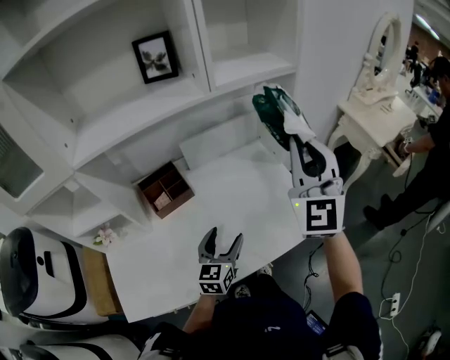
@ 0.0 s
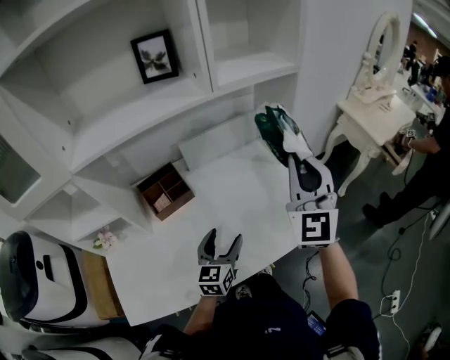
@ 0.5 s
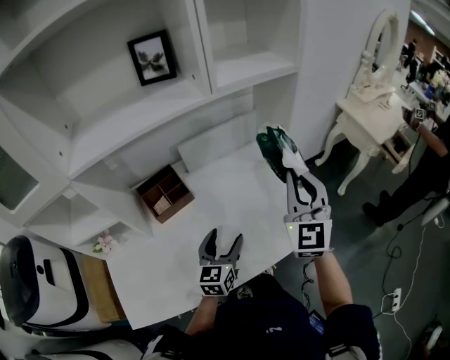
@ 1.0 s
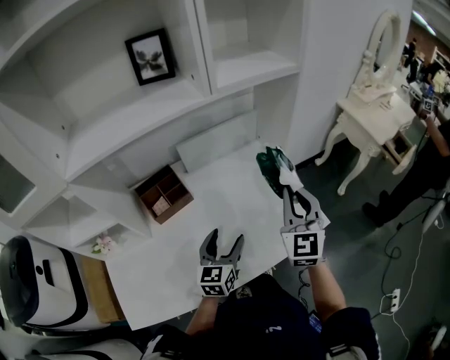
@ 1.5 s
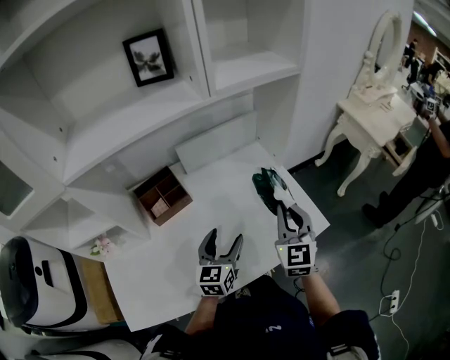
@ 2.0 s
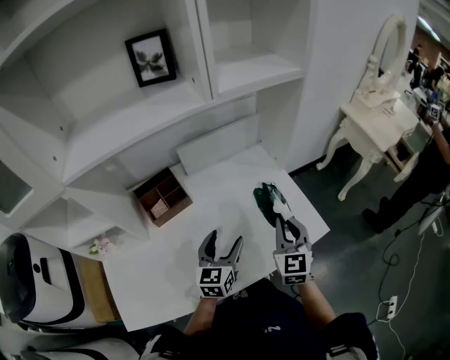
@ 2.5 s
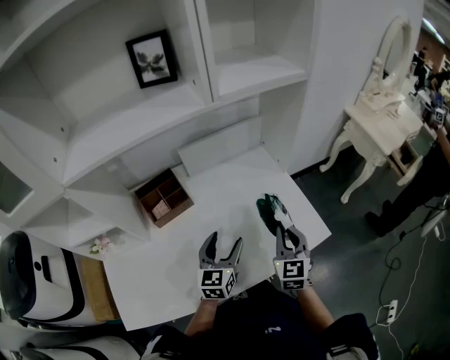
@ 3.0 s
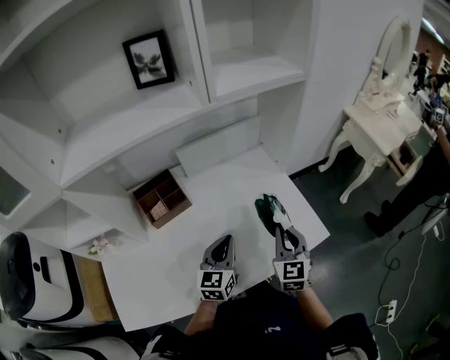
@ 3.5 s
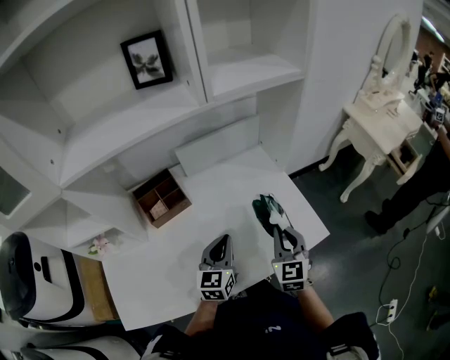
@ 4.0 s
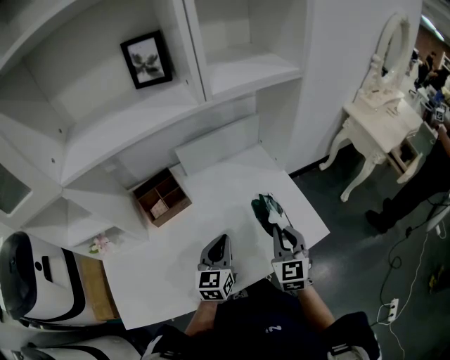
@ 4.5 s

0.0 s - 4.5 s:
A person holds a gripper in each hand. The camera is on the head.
0.0 s - 2.0 s: The right gripper shifts approximately 20 cm downward, and rotates some 30 degrees.
2.0 s - 4.5 s: The right gripper travels downward by some 5 cm; the left gripper closes up.

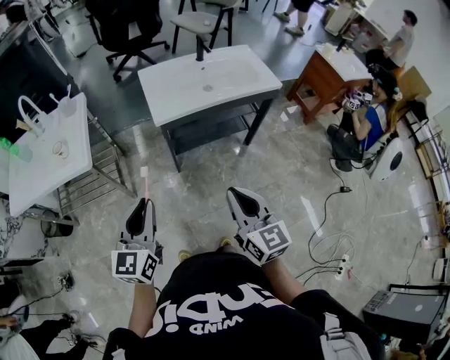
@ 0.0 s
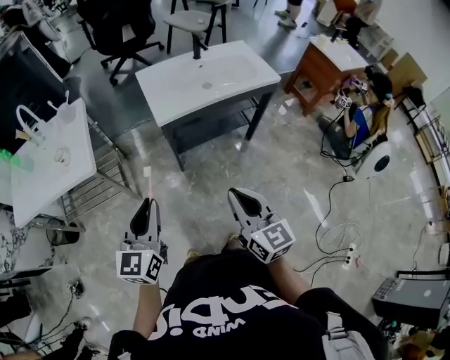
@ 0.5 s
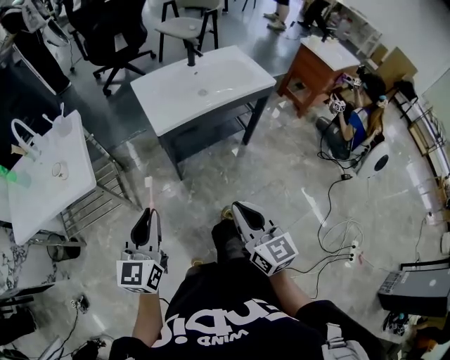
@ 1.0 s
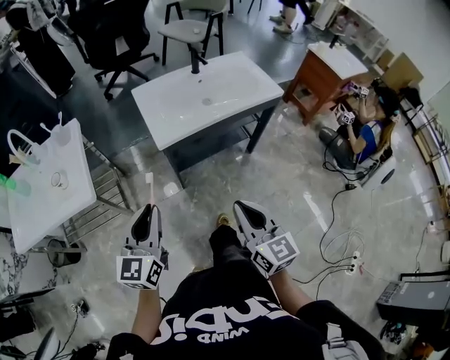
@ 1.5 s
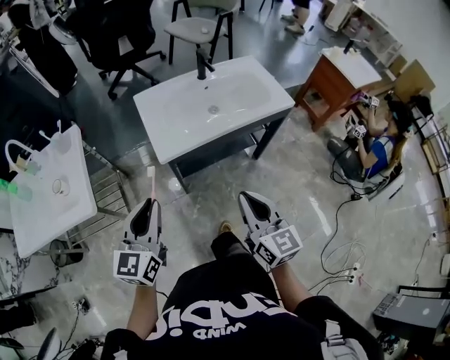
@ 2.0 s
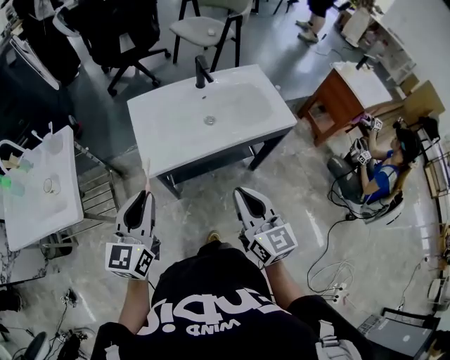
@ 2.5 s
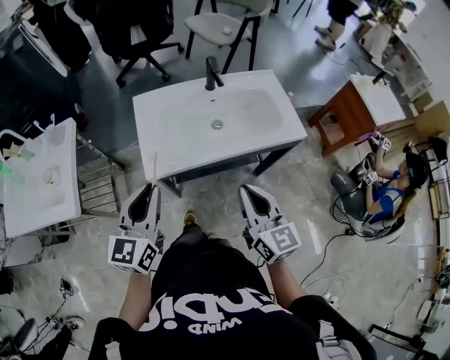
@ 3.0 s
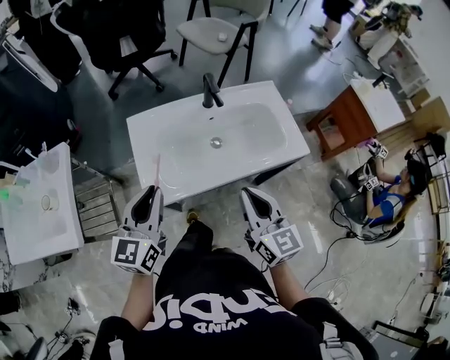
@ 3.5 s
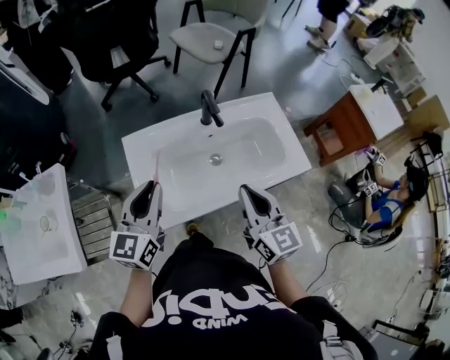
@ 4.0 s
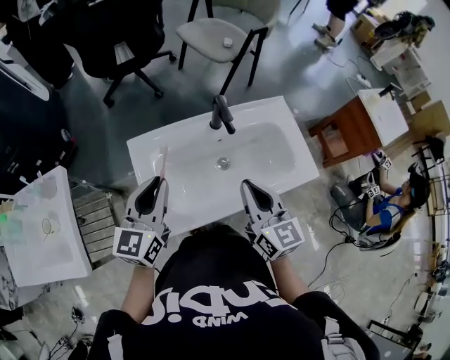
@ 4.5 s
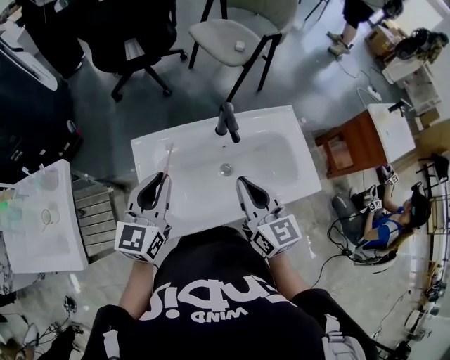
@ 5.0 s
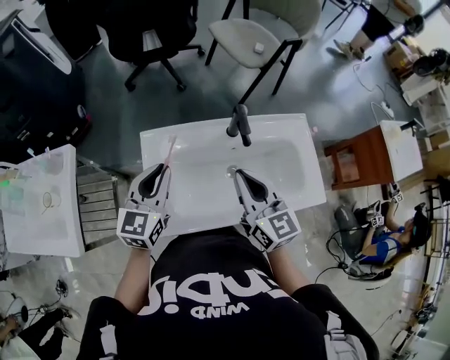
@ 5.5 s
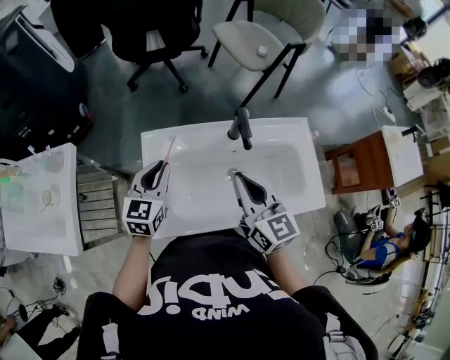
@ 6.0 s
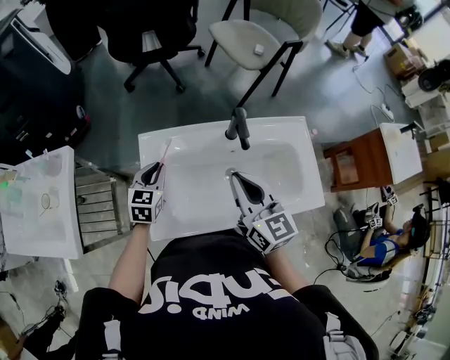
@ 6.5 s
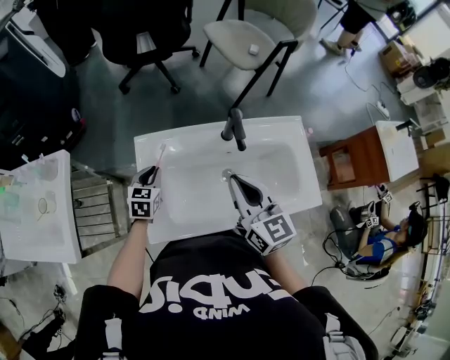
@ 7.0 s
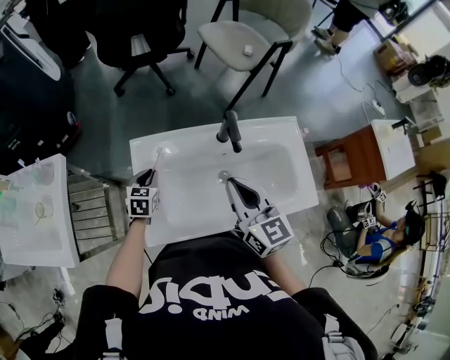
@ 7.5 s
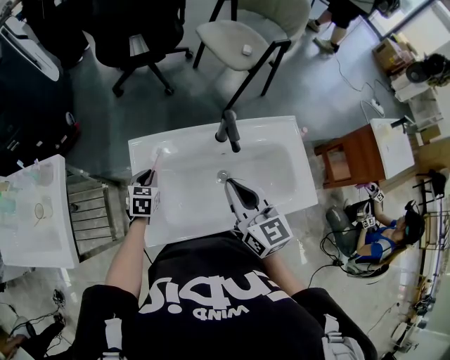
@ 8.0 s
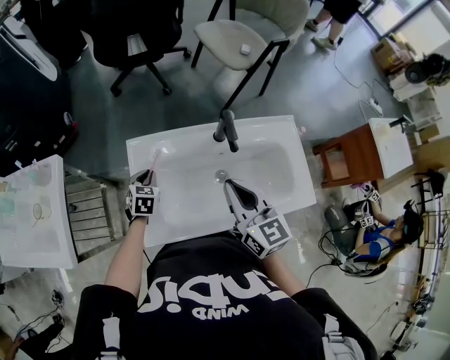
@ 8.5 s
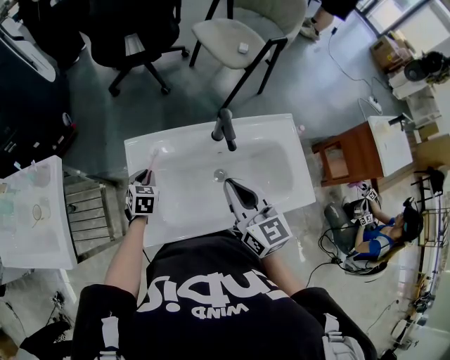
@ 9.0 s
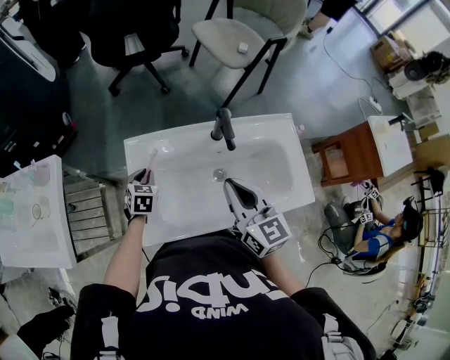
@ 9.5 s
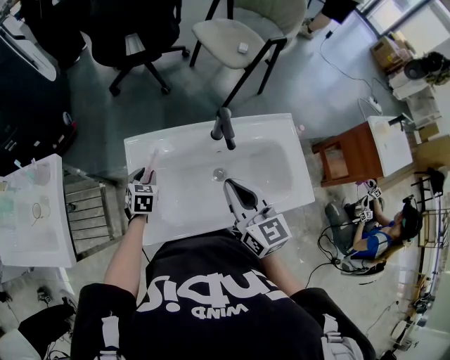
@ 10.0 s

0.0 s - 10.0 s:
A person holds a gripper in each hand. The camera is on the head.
0.0 s - 2.0 s: Both grippers move forward, some 15 cm.
2.0 s - 4.0 s: Both grippers move forward, roughly 35 cm.
4.0 s - 6.0 s: The right gripper heads forward, covering some 15 cm. Meanwhile the left gripper shifts roughly 15 cm forward and downward.
6.0 s - 8.0 s: The left gripper shifts about 15 cm downward, and turns by some 30 degrees.
8.0 s - 10.0 s: There are only small adjustments of the grippers.

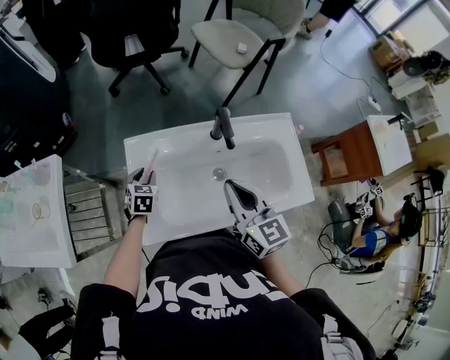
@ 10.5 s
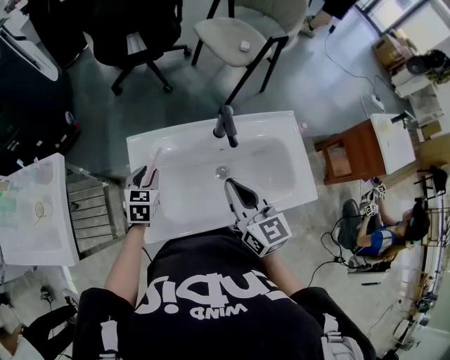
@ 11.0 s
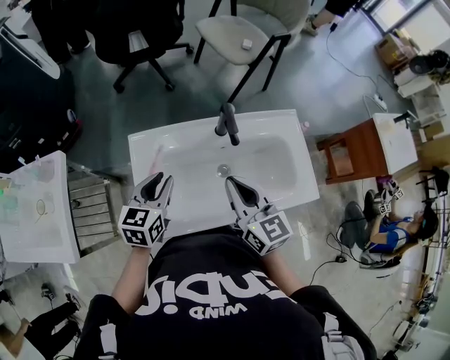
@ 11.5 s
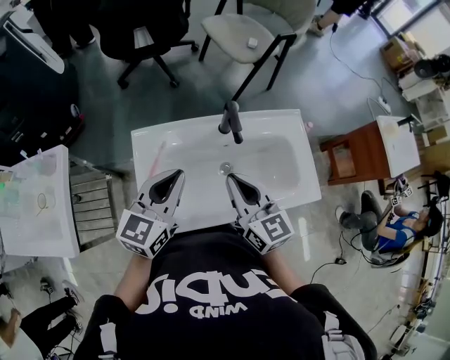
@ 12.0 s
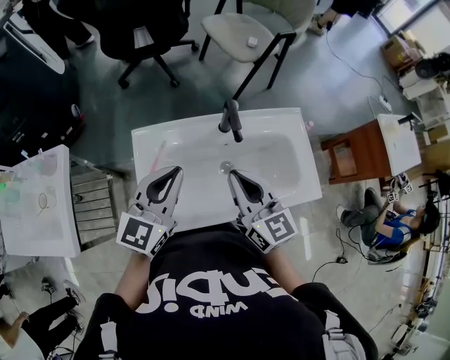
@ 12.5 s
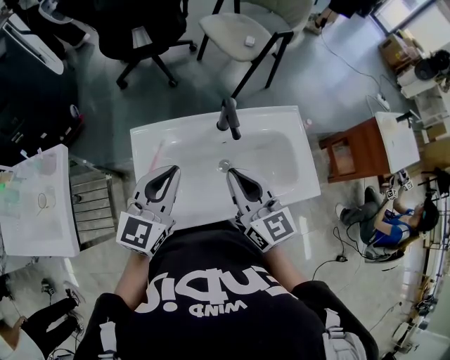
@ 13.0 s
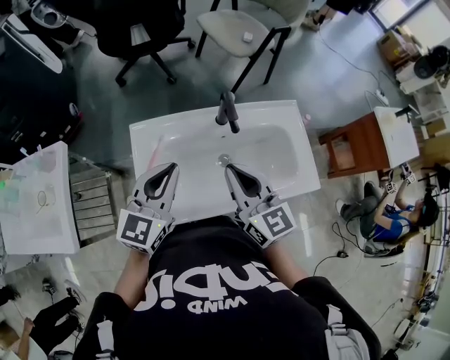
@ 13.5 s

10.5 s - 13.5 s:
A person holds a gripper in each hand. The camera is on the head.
10.5 s - 12.0 s: The left gripper shifts roughly 30 cm upward and to the right, tips its fingers upward by some 40 degrees, and closes up.
12.0 s - 13.5 s: The grippers move only a little.

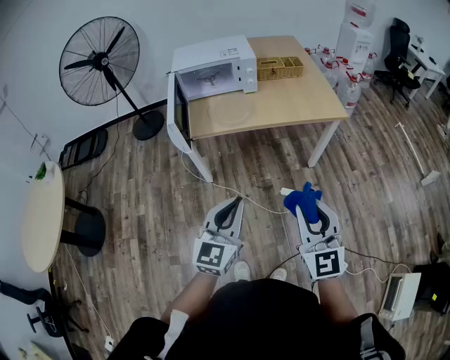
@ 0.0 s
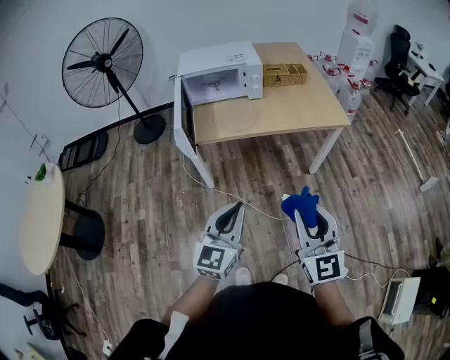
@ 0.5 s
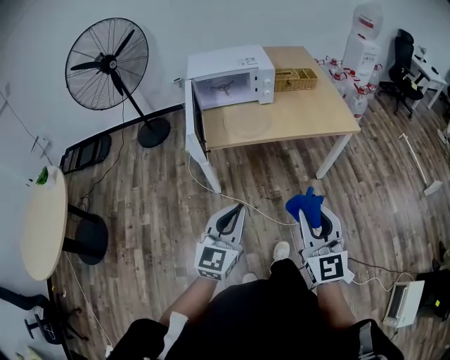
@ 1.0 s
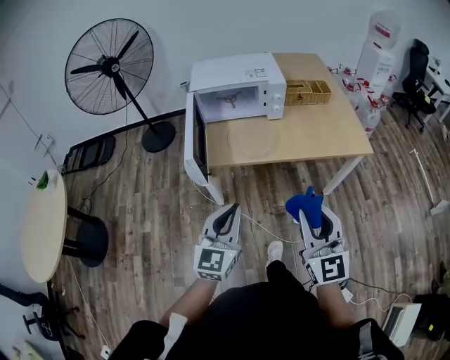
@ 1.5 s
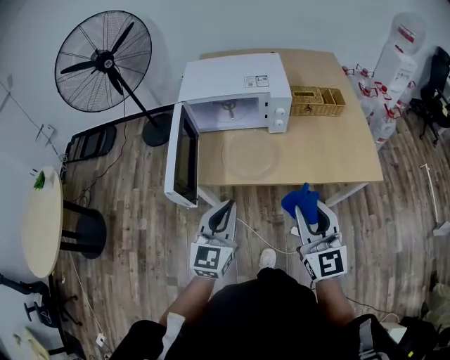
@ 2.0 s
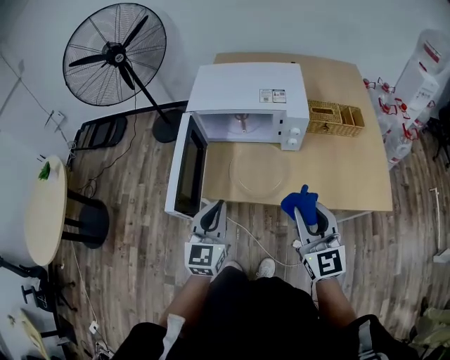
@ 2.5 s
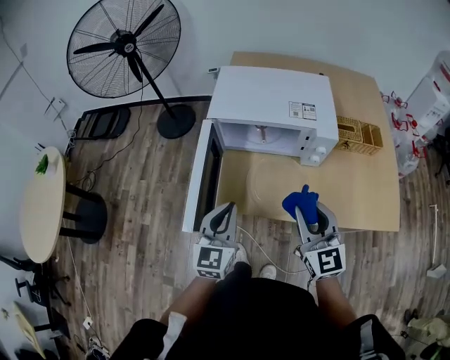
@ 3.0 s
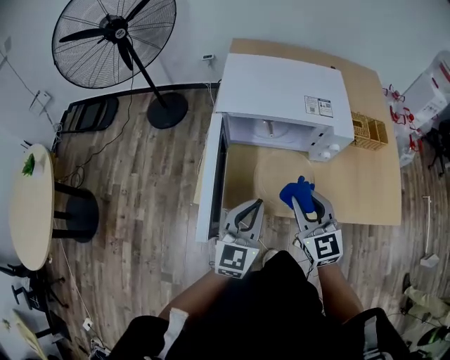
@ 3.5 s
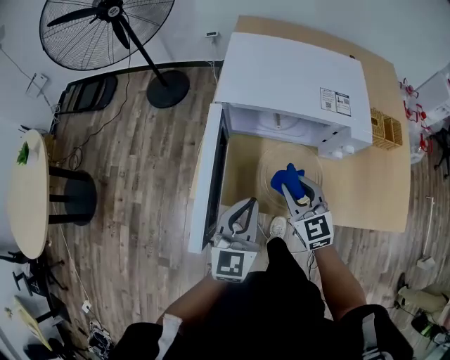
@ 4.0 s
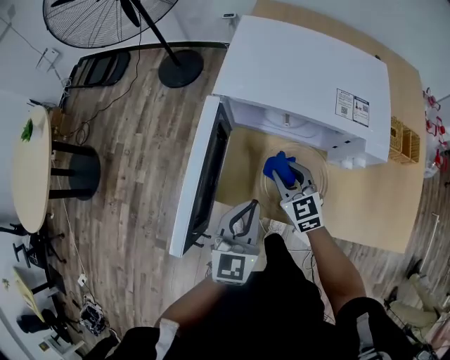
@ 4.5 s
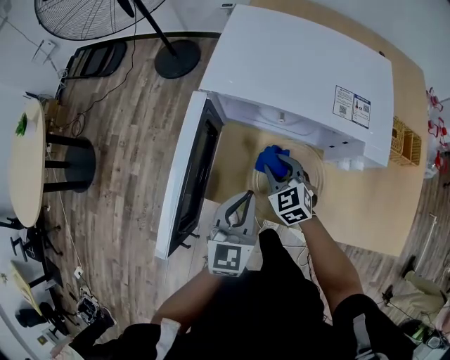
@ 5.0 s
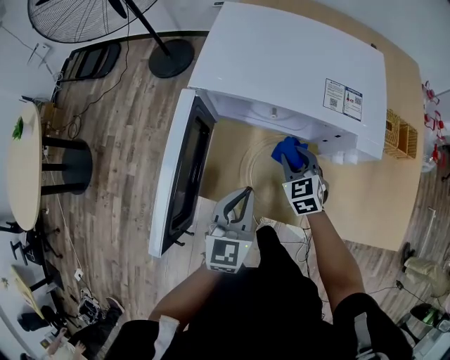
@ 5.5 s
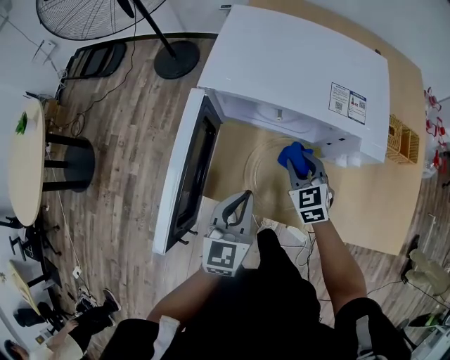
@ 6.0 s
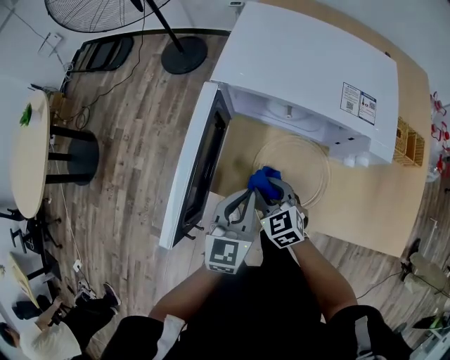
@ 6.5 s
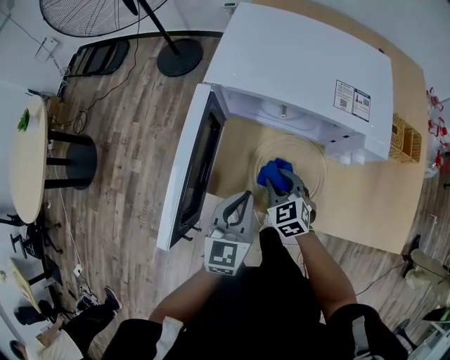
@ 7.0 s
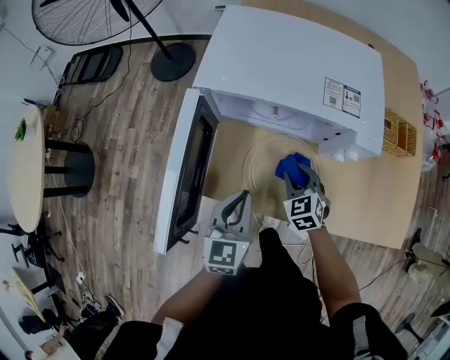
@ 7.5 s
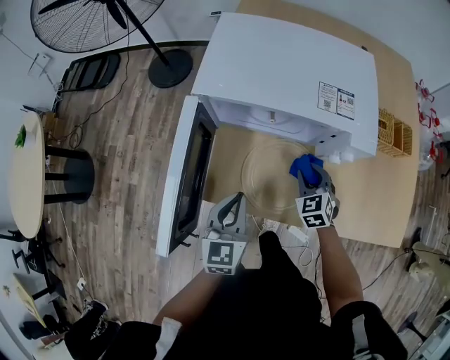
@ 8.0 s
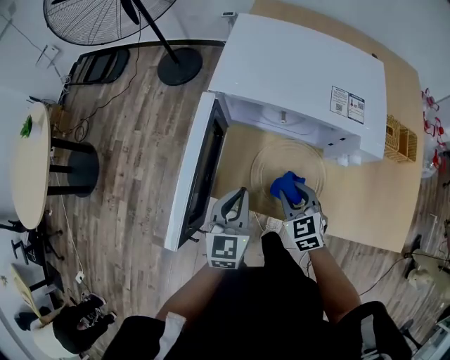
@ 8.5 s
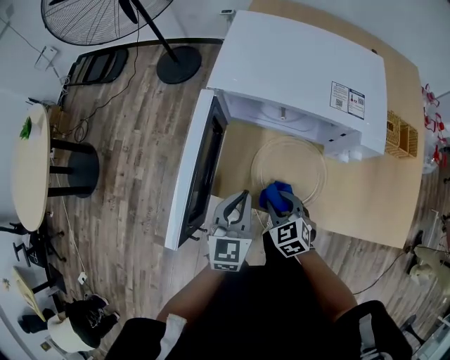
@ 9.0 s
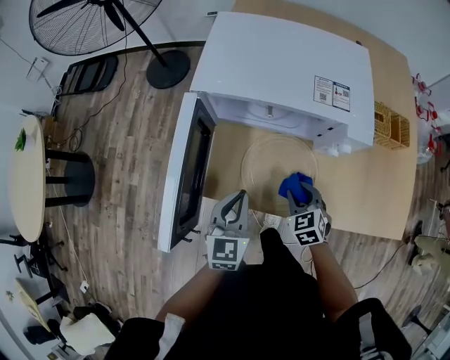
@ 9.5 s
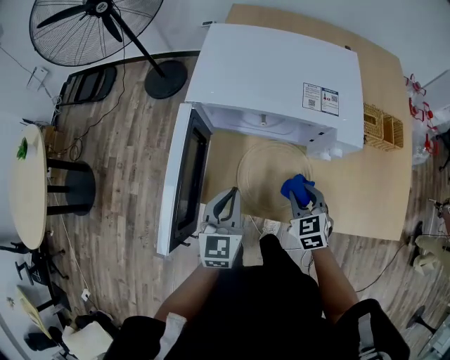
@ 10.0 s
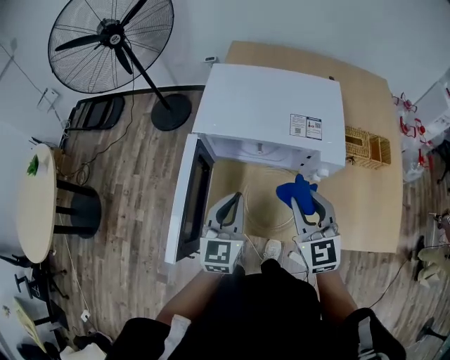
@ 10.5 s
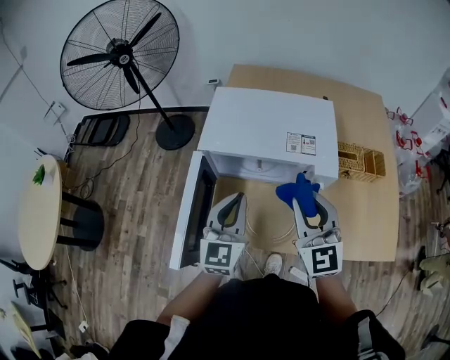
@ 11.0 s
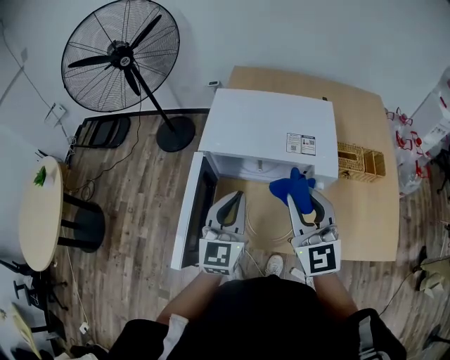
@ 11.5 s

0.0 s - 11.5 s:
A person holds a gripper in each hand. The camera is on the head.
0.0 s - 2.0 s: Both grippers travel together forward, roughly 35 cm.
2.0 s - 4.0 s: The right gripper travels forward, downward and to the left by some 35 cm, and rotates about 30 degrees, while the left gripper moves forward, some 20 cm.
4.0 s - 6.0 s: The right gripper is displaced downward, forward and to the right by some 15 cm; the left gripper shifts roughly 5 cm downward.
6.0 s - 7.5 s: The right gripper moves approximately 10 cm to the left and comes back.
7.5 s - 9.5 s: The right gripper goes left and right, some 15 cm each way, reversing 2 times.
9.5 s - 11.5 s: The left gripper travels upward by roughly 15 cm, while the right gripper heads upward, covering approximately 35 cm, and tips its fingers upward by roughly 50 degrees.
